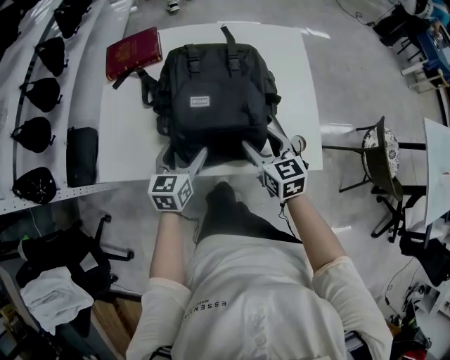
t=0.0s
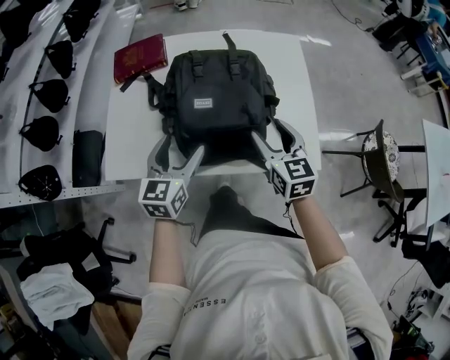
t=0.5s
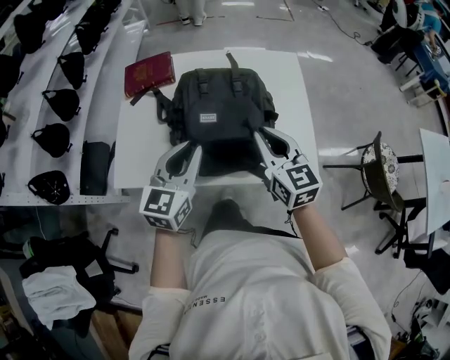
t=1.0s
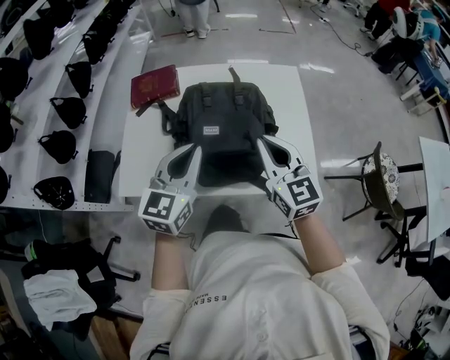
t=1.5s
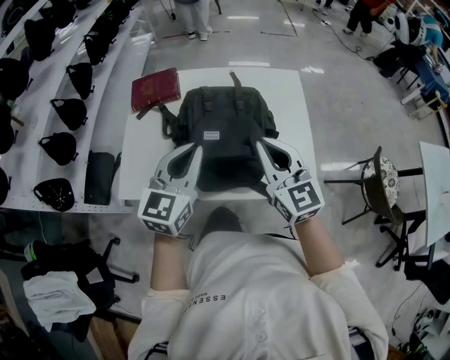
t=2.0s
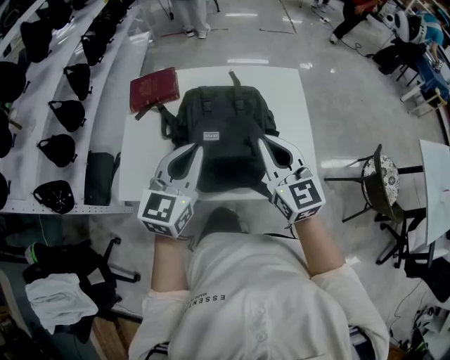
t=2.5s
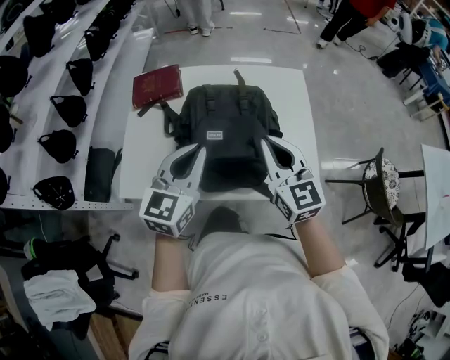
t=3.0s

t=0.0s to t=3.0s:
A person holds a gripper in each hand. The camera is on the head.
t=0.0s to t=1.5s: Both grippers travel together upward, roughly 20 cm. The left gripper changes its angle by about 20 degrees, and closes up; the right gripper changes its angle by about 20 degrees, and closes its fingers.
t=1.5s to t=3.0s: There are only small adjustments of the grippers.

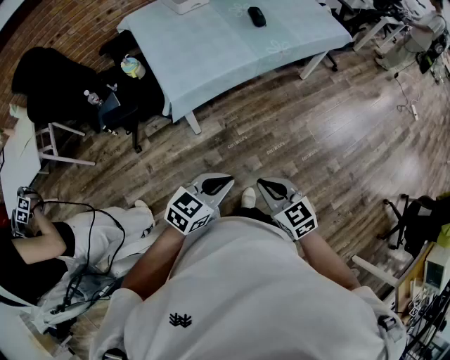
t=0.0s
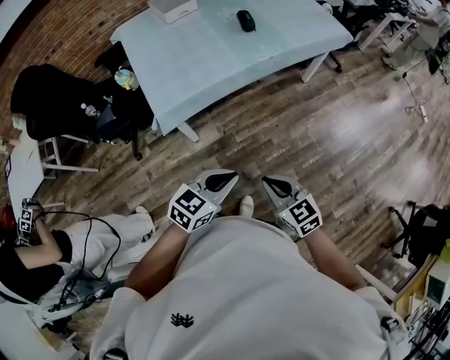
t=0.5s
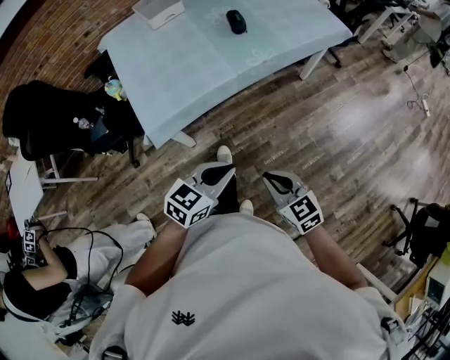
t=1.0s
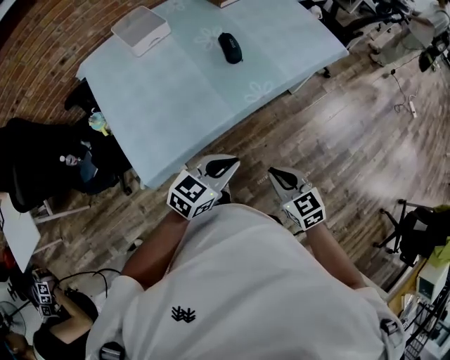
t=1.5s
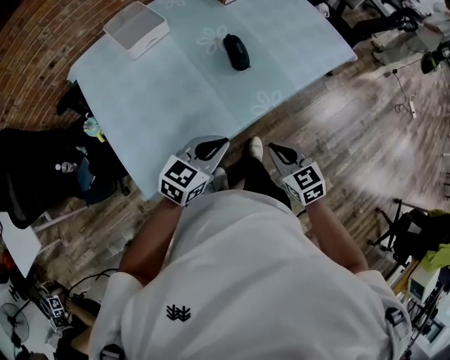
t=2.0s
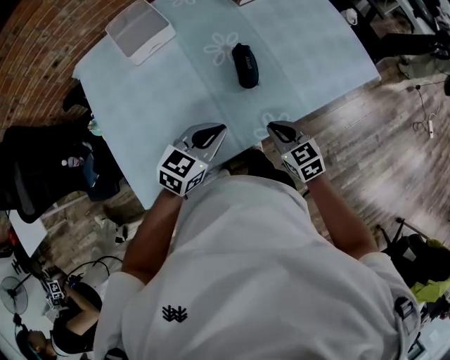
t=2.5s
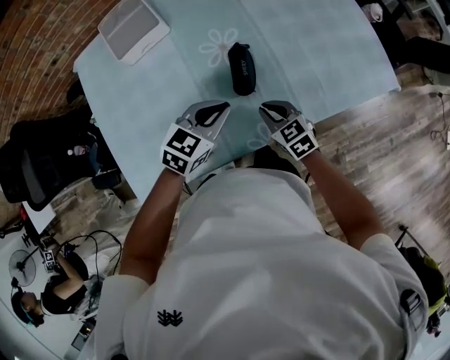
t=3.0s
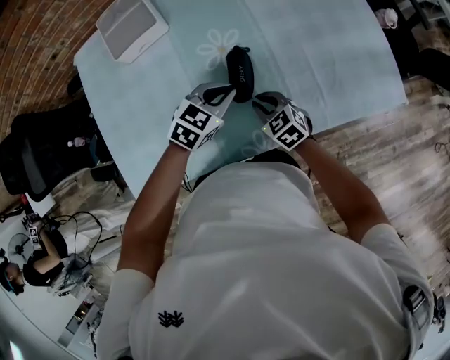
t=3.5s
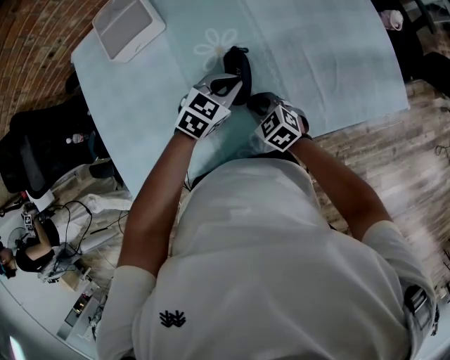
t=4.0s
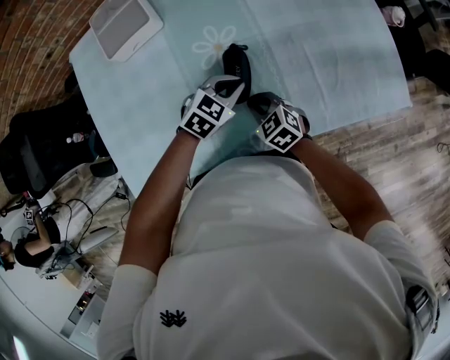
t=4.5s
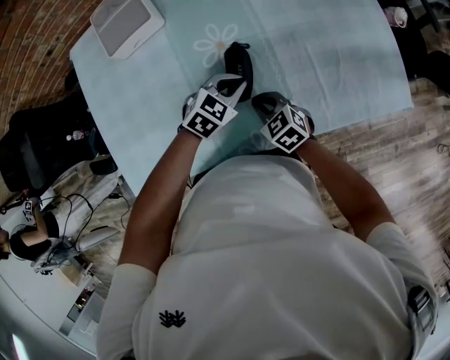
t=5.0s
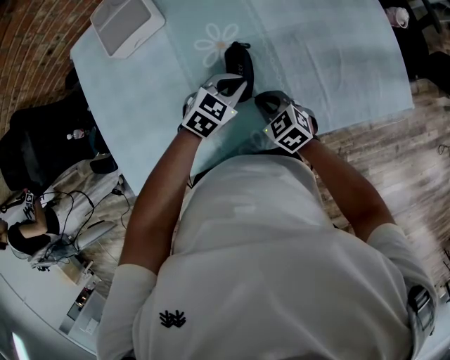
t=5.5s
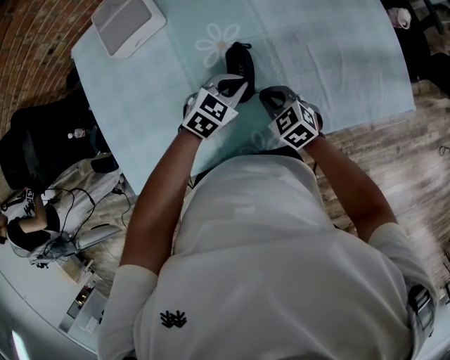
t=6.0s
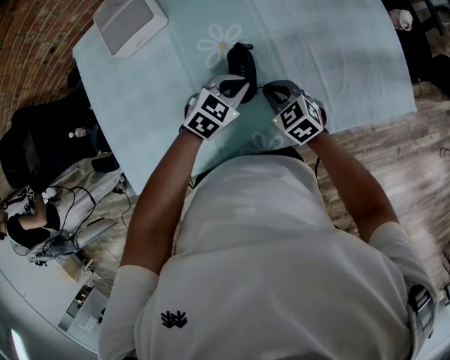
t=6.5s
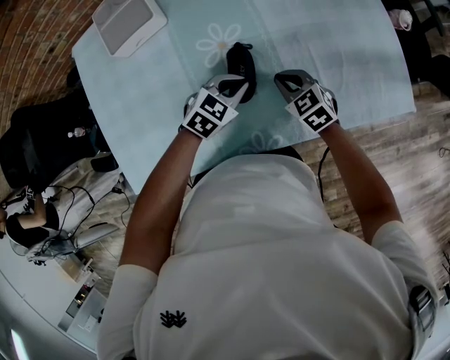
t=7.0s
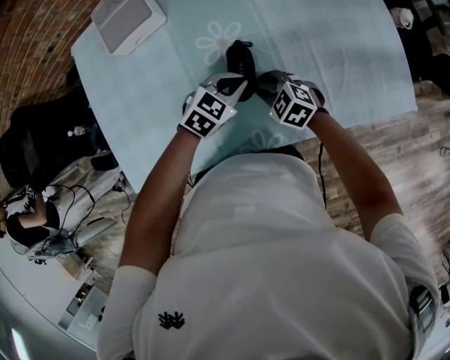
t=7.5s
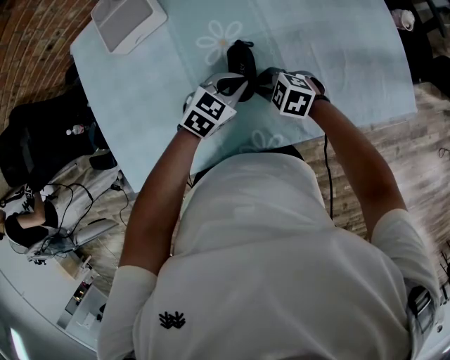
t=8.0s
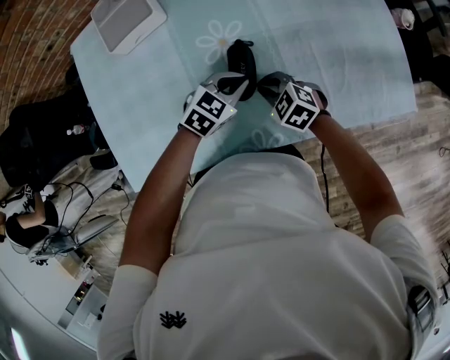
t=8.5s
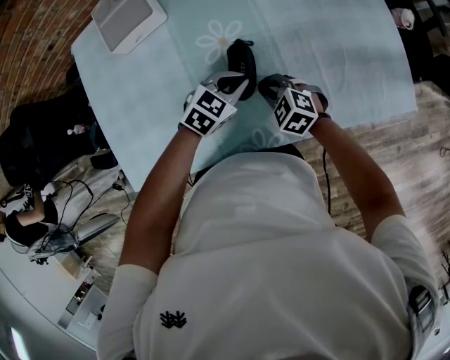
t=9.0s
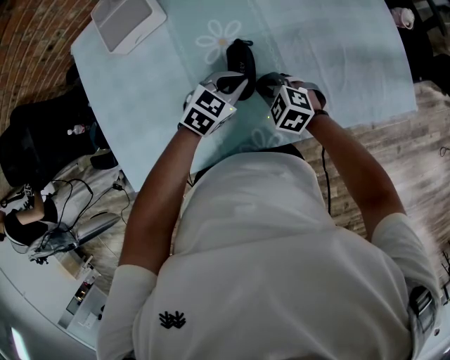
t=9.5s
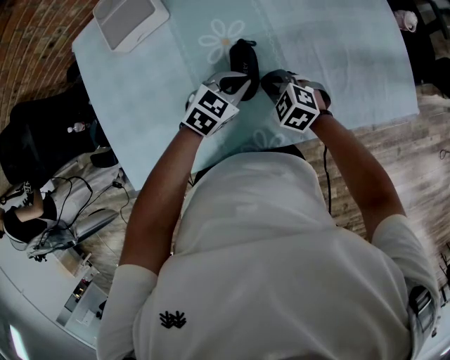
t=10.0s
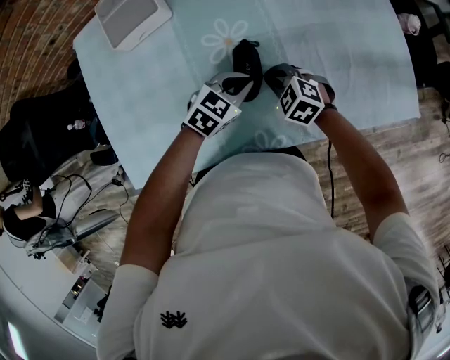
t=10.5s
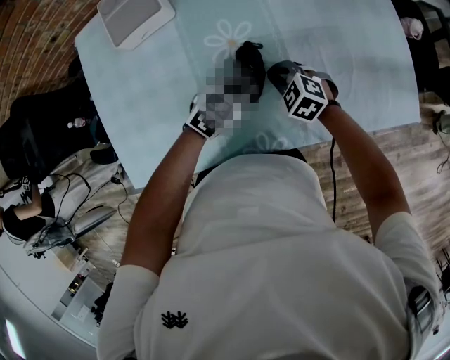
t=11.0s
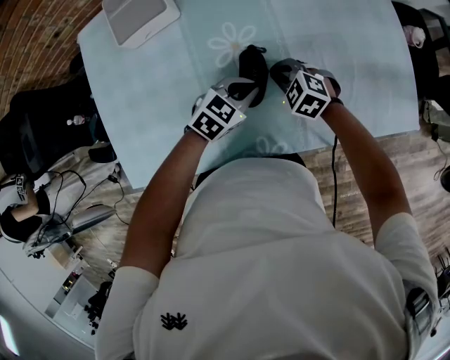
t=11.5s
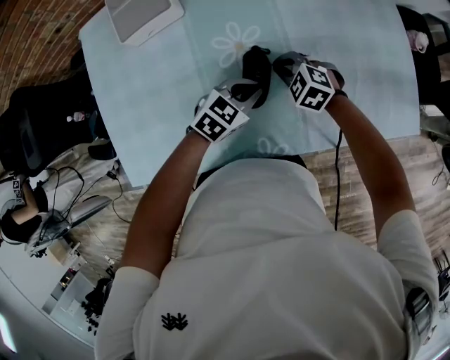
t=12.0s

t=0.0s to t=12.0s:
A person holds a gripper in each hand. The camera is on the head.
t=0.0s to t=2.0s: The pair of grippers is taken forward, some 50 cm.
t=2.0s to t=4.0s: The left gripper changes place by about 40 cm, and rotates approximately 30 degrees, while the right gripper moves some 35 cm, and swivels approximately 40 degrees.
t=4.0s to t=6.0s: The grippers move only a little.
t=6.0s to t=8.0s: The right gripper rotates roughly 30 degrees.
t=8.0s to t=10.0s: The grippers move only a little.
t=10.0s to t=12.0s: The right gripper moves forward, approximately 5 cm.

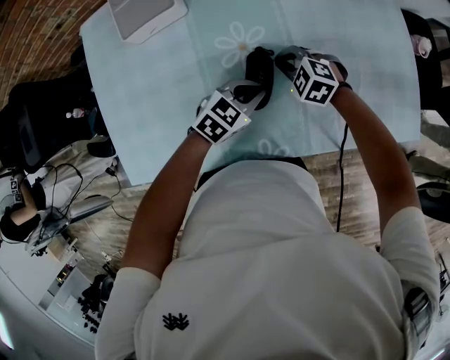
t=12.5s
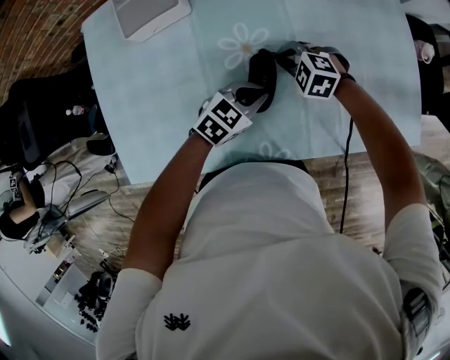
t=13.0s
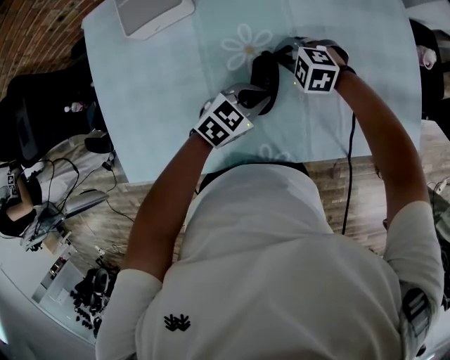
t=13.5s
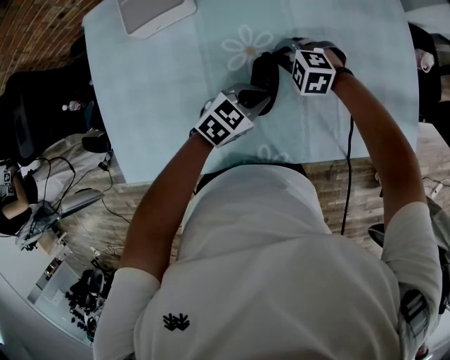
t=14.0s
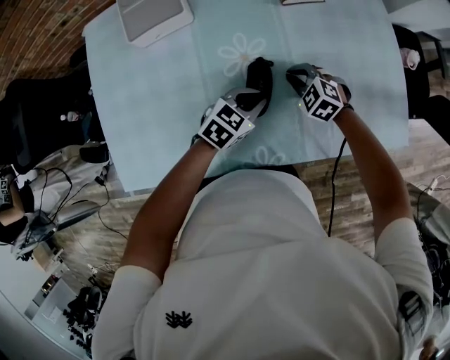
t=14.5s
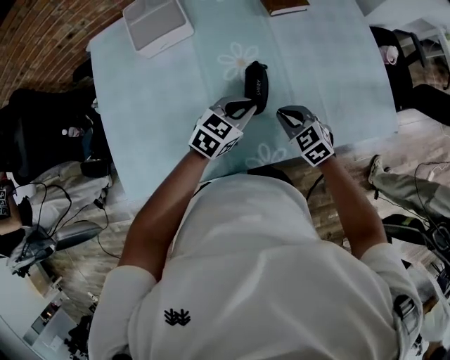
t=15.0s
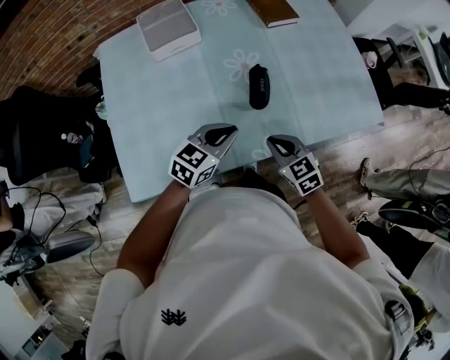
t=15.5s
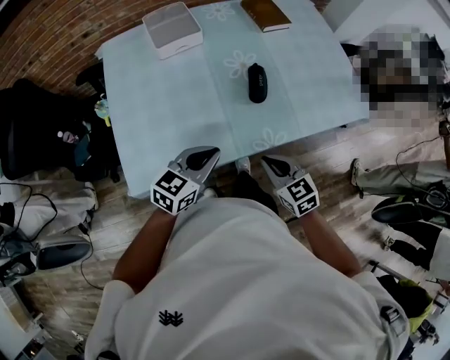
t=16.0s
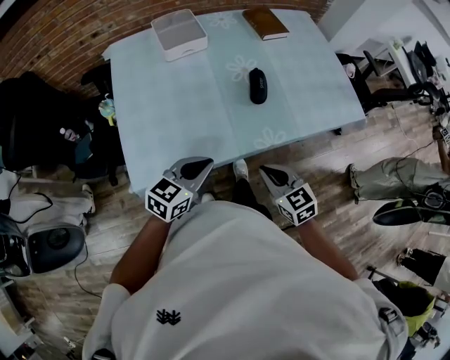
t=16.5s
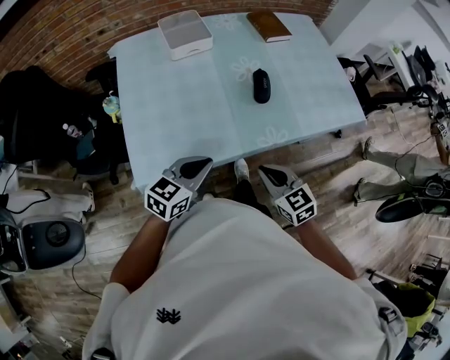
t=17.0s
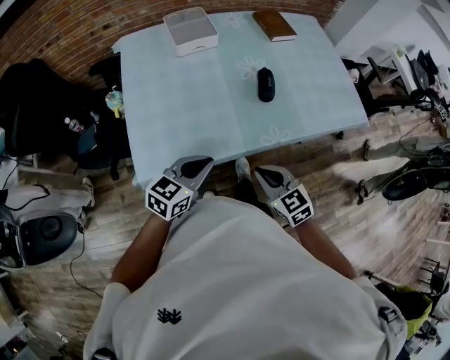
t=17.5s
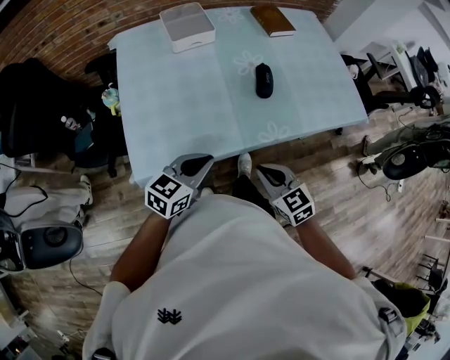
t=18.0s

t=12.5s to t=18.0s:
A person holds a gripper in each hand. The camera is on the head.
t=12.5s to t=14.5s: The grippers make only small movements.
t=14.5s to t=16.0s: The left gripper goes approximately 35 cm backward, to the left and upward, and rotates approximately 20 degrees; the right gripper is displaced backward by about 35 cm, and swivels roughly 50 degrees.
t=16.0s to t=18.0s: The grippers both shift backward by about 10 cm.

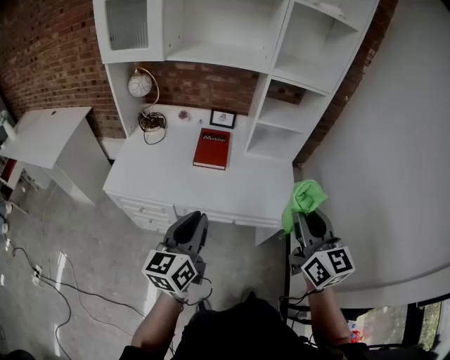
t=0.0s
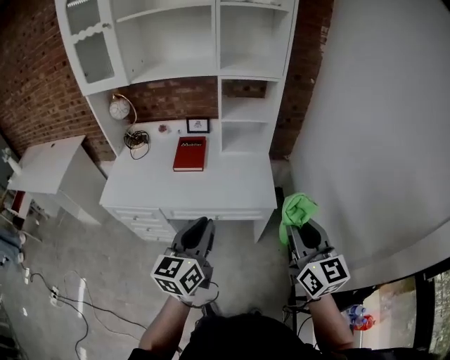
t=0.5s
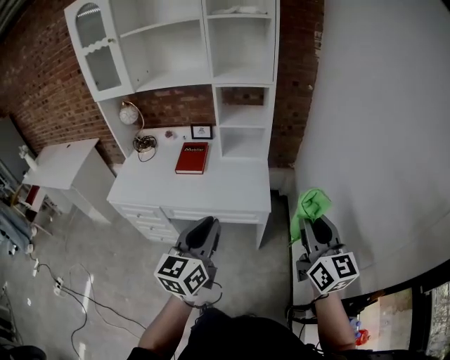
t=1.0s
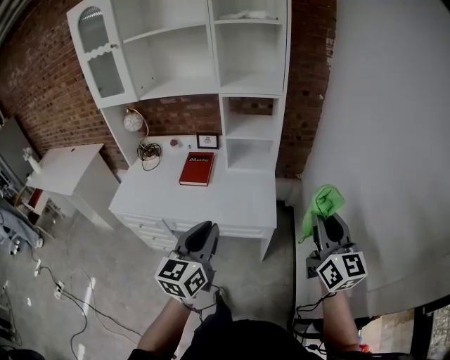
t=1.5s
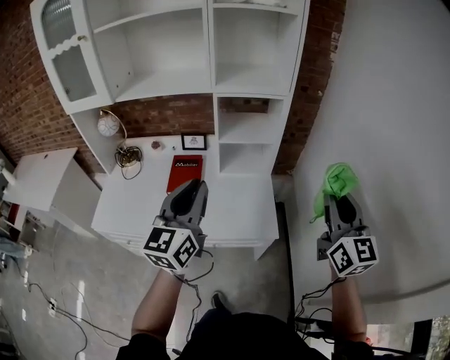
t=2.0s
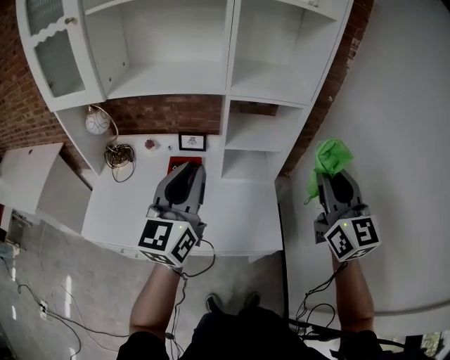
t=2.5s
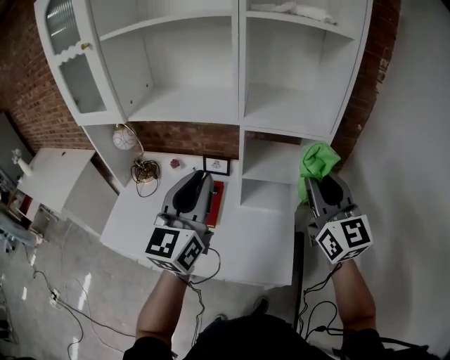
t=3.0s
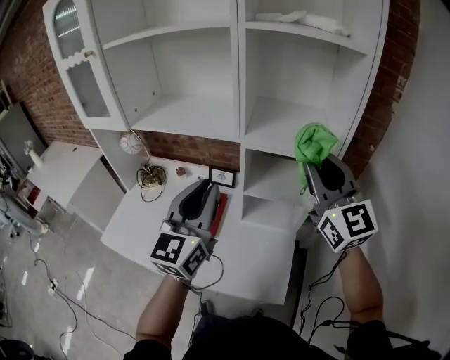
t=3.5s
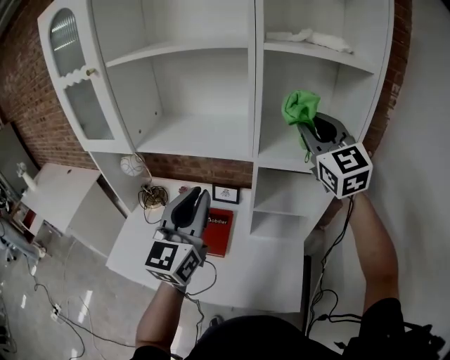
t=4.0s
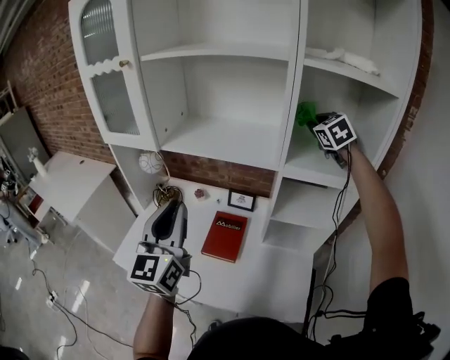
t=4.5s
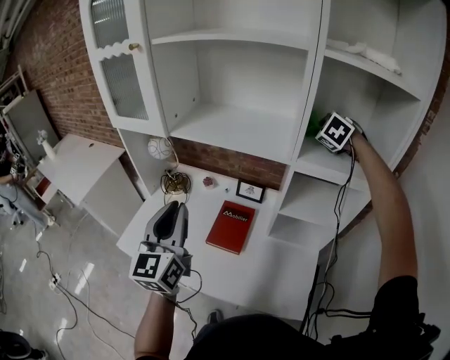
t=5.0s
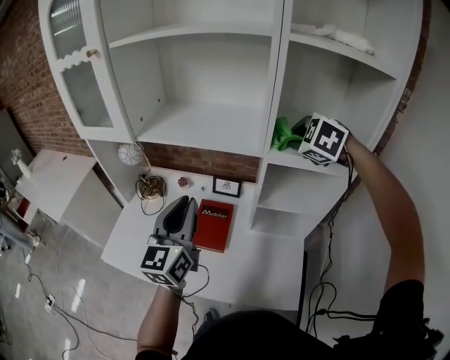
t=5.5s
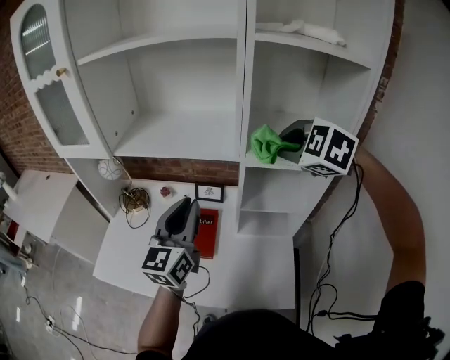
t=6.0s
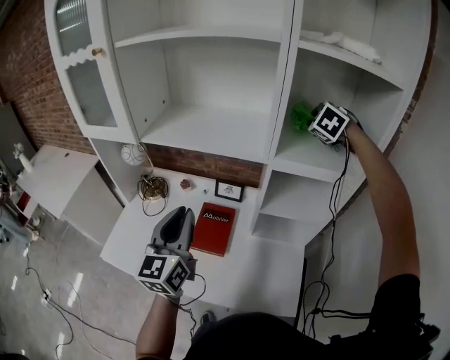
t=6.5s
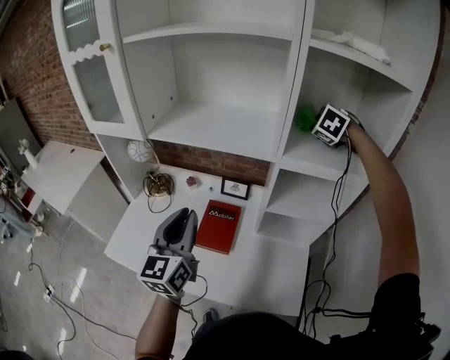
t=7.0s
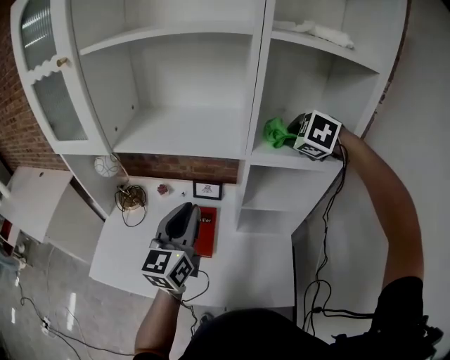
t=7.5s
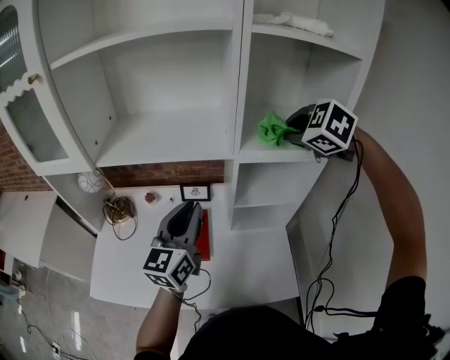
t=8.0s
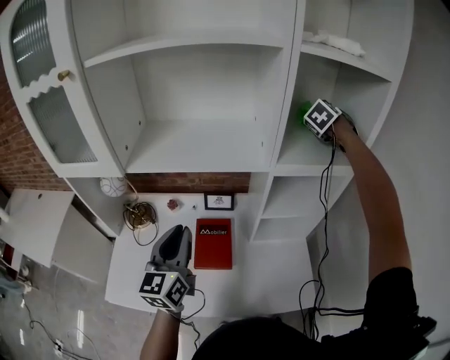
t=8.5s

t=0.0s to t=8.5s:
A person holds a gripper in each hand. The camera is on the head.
t=0.0s to t=2.0s: The left gripper moves to the right, forward and upward, approximately 25 cm; the right gripper is displaced to the right by about 25 cm.
t=2.0s to t=4.0s: The left gripper heads forward, covering approximately 20 cm; the right gripper heads forward and to the left, covering some 40 cm, and changes its angle by approximately 30 degrees.
t=4.0s to t=6.5s: The left gripper moves left and right over some 15 cm, changing direction 2 times; the right gripper goes forward and backward, roughly 20 cm each way, reversing 2 times, and points its fingers some 50 degrees further downward.
t=6.5s to t=8.5s: The right gripper moves to the right, approximately 10 cm, moves some 15 cm backward and comes back, and turns by approximately 30 degrees. The left gripper goes some 5 cm to the left.
